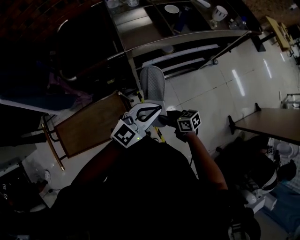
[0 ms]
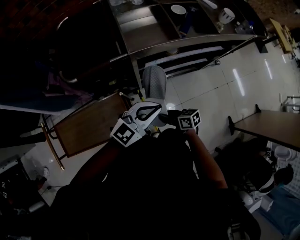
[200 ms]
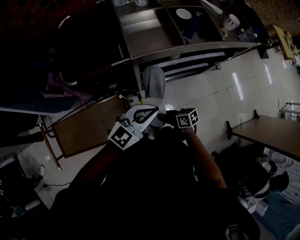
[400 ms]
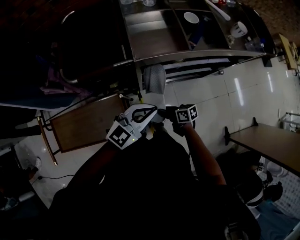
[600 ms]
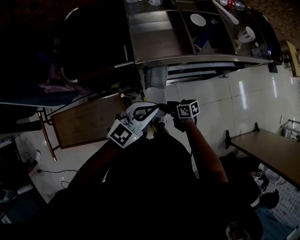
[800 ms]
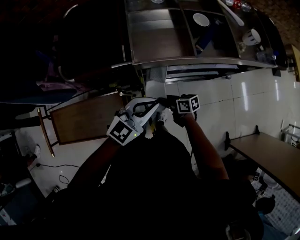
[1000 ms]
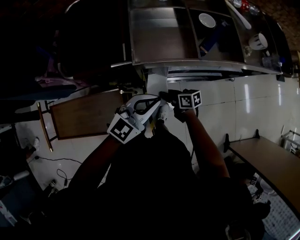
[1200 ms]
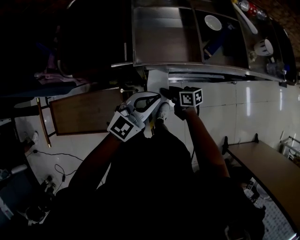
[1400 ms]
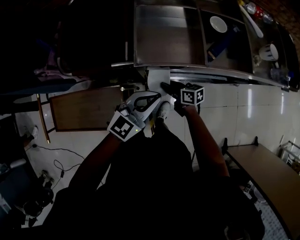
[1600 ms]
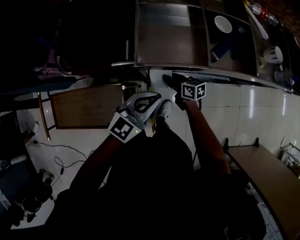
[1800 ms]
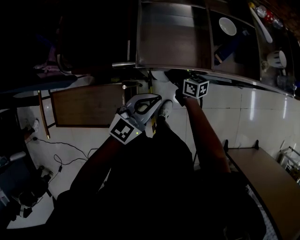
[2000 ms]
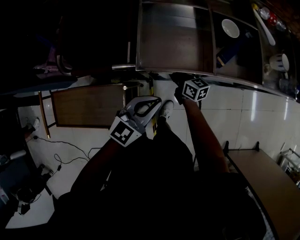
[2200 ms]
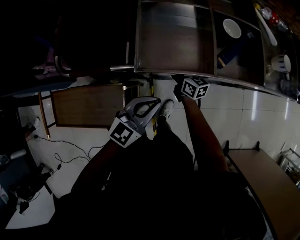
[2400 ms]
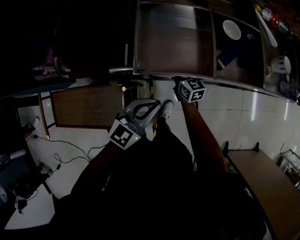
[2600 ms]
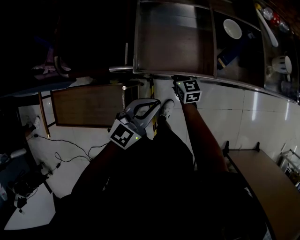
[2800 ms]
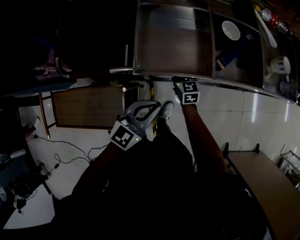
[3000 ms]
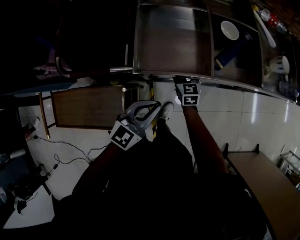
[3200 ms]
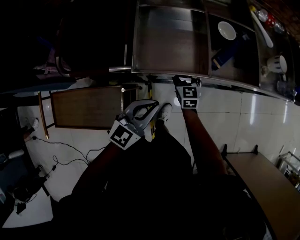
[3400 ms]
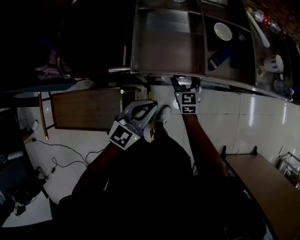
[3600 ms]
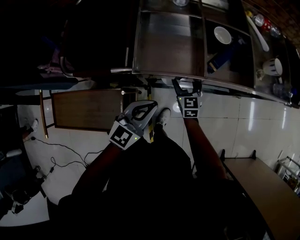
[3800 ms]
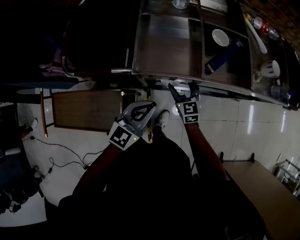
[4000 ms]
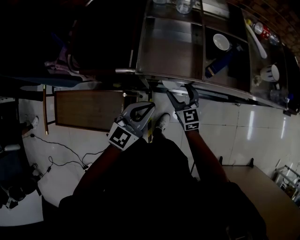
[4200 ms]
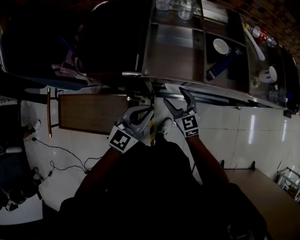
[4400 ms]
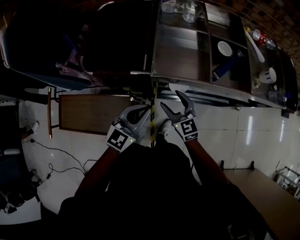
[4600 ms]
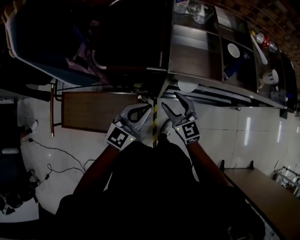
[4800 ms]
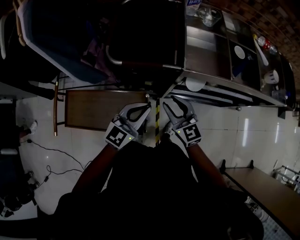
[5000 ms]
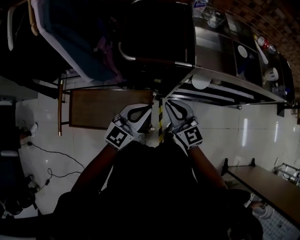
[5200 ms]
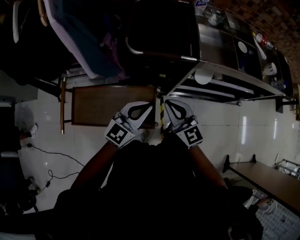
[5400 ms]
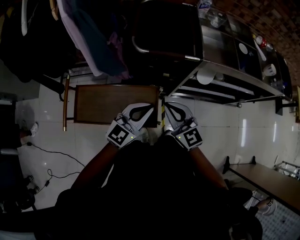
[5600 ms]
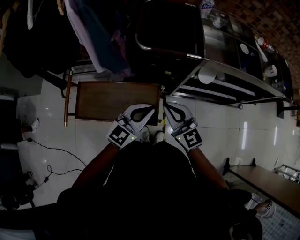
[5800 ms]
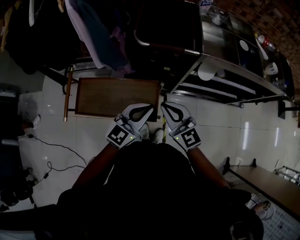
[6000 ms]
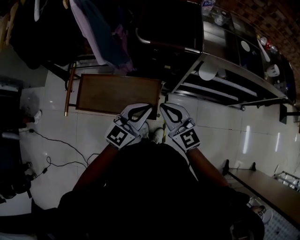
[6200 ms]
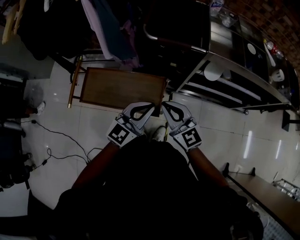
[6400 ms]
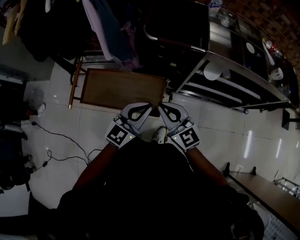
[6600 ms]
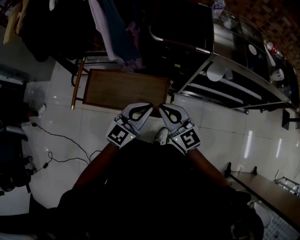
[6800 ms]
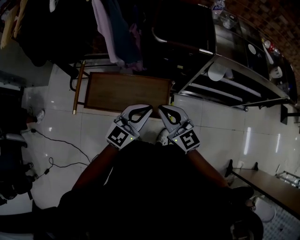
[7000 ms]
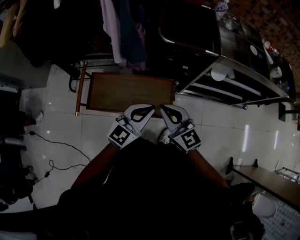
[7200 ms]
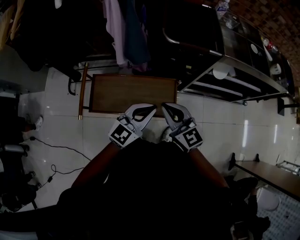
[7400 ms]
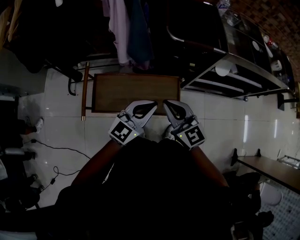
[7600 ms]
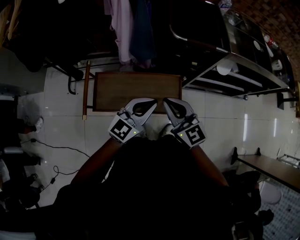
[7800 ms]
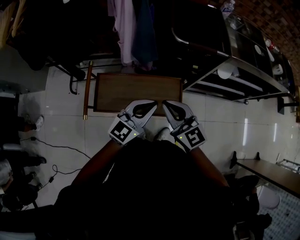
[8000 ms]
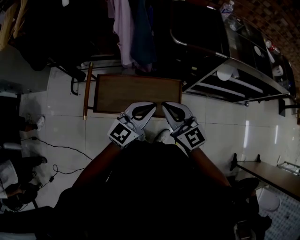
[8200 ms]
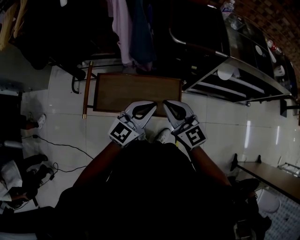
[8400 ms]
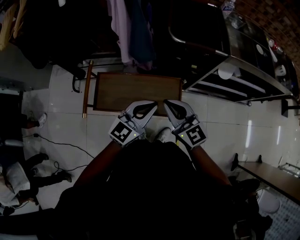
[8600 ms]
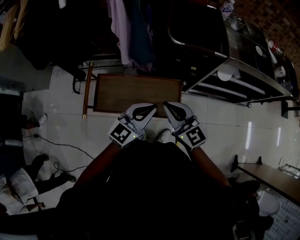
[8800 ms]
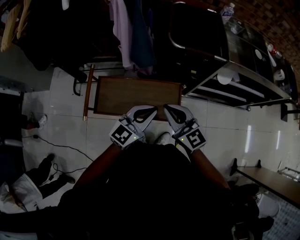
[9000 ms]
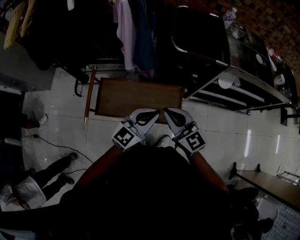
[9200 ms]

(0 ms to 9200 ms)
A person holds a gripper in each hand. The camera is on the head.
0 ms - 1600 ms: The left gripper moves roughly 15 cm, and swivels approximately 20 degrees. The right gripper ends up some 25 cm from where it was.
1600 ms - 3000 ms: The right gripper heads forward, covering roughly 10 cm, swivels some 40 degrees, and opens up.
3000 ms - 4600 ms: The left gripper is displaced to the left and upward by roughly 10 cm. Meanwhile the right gripper is displaced upward and backward by approximately 20 cm, and turns by some 20 degrees.
4600 ms - 6200 ms: The left gripper goes approximately 25 cm to the left and backward. The right gripper goes some 30 cm to the left, backward and upward, and closes up.
6200 ms - 7600 ms: Both grippers move to the left, approximately 15 cm.
7600 ms - 9200 ms: The grippers stay close to where they were, moving slightly.

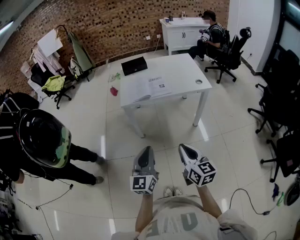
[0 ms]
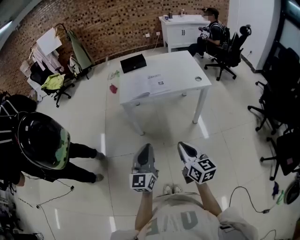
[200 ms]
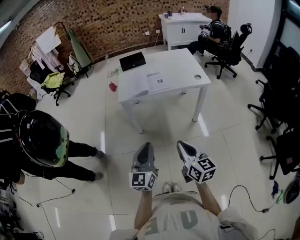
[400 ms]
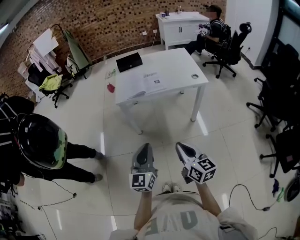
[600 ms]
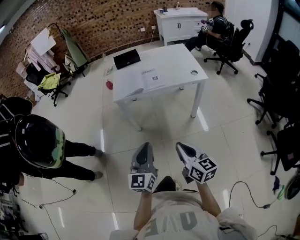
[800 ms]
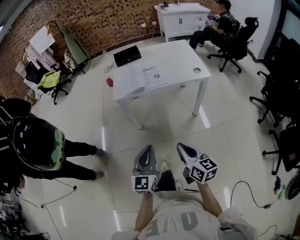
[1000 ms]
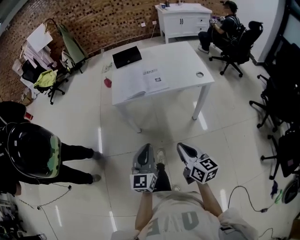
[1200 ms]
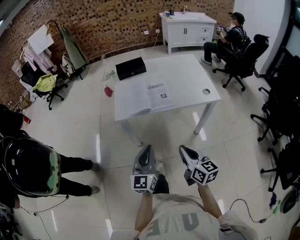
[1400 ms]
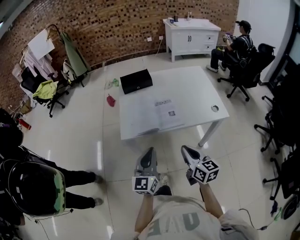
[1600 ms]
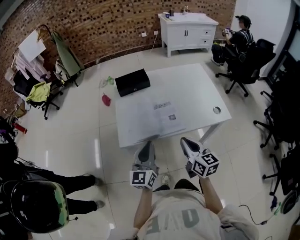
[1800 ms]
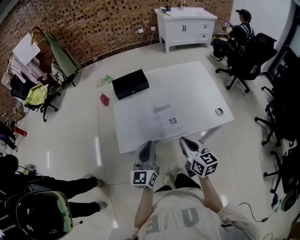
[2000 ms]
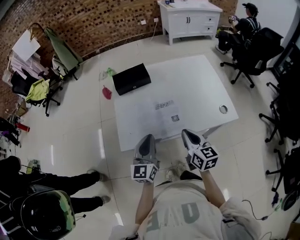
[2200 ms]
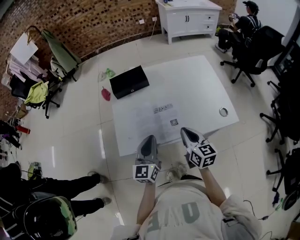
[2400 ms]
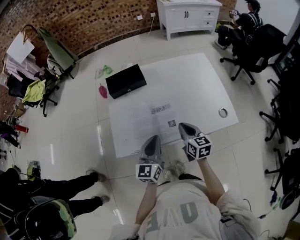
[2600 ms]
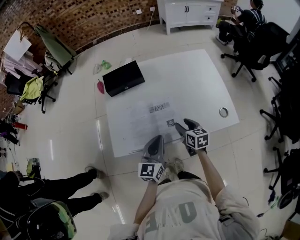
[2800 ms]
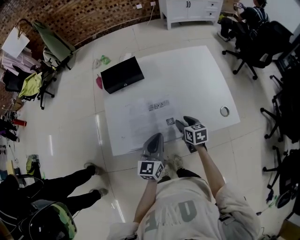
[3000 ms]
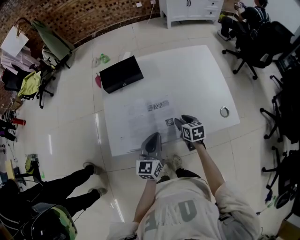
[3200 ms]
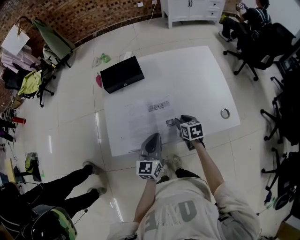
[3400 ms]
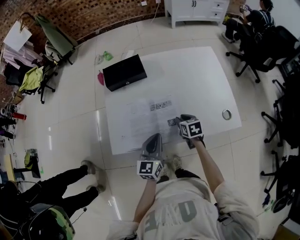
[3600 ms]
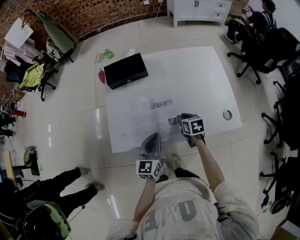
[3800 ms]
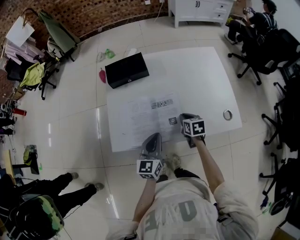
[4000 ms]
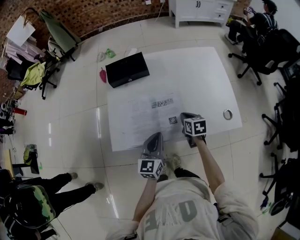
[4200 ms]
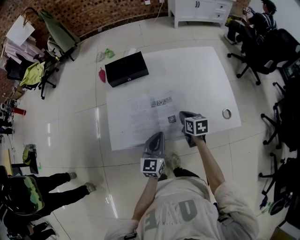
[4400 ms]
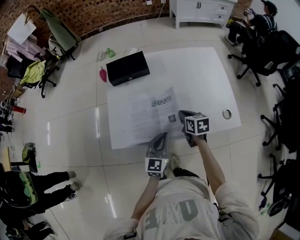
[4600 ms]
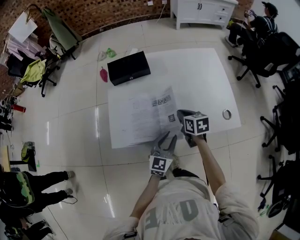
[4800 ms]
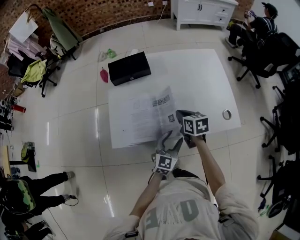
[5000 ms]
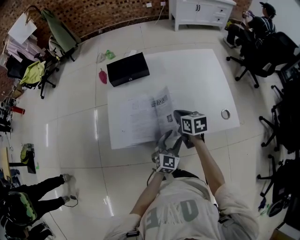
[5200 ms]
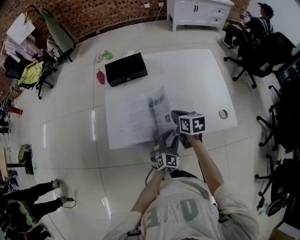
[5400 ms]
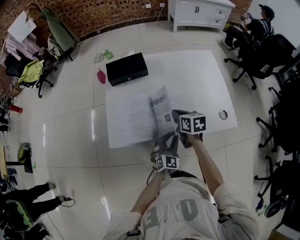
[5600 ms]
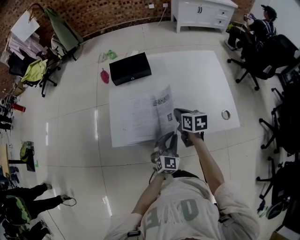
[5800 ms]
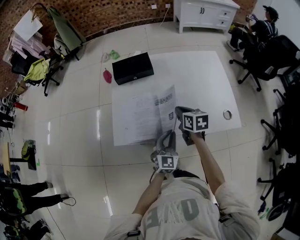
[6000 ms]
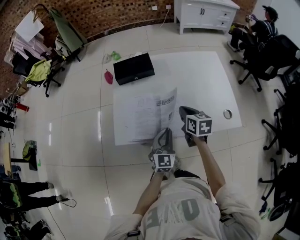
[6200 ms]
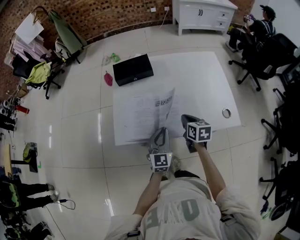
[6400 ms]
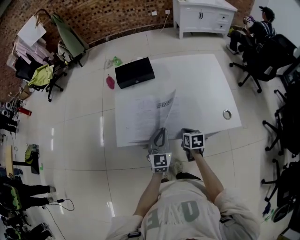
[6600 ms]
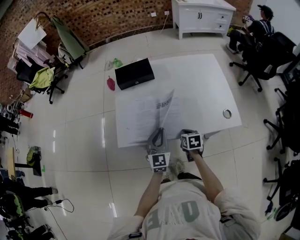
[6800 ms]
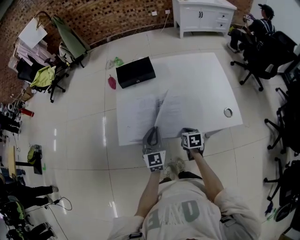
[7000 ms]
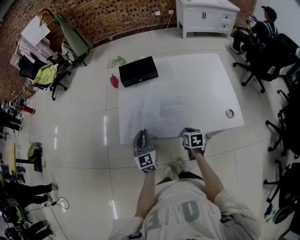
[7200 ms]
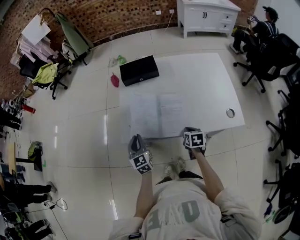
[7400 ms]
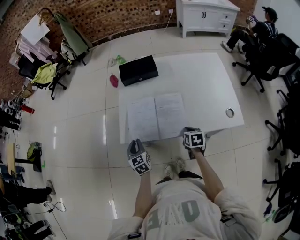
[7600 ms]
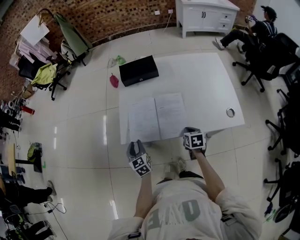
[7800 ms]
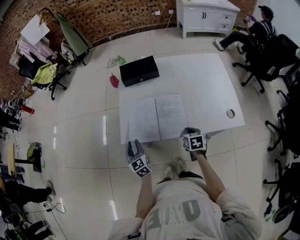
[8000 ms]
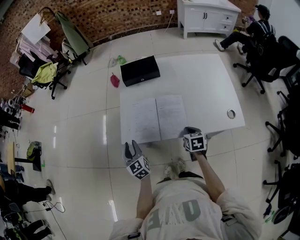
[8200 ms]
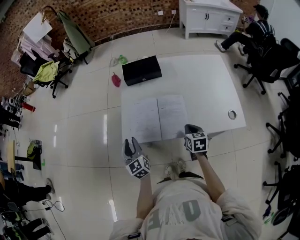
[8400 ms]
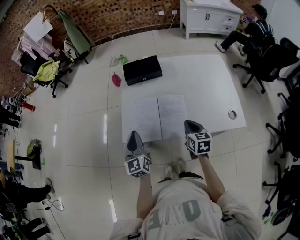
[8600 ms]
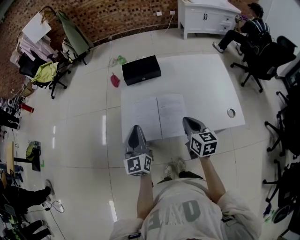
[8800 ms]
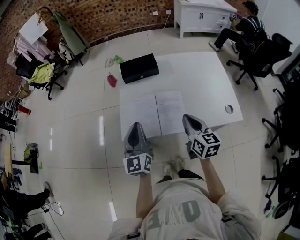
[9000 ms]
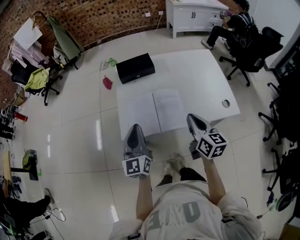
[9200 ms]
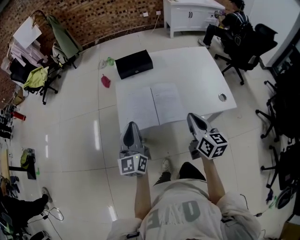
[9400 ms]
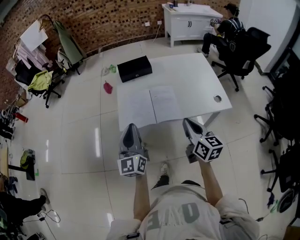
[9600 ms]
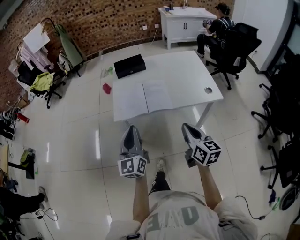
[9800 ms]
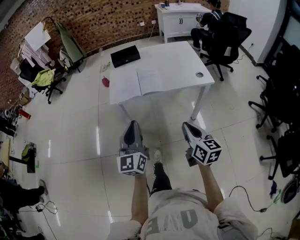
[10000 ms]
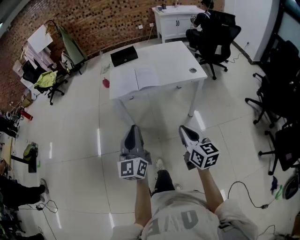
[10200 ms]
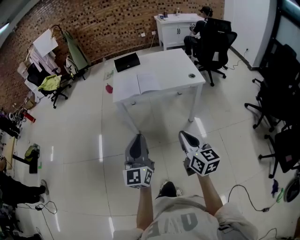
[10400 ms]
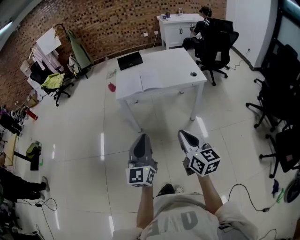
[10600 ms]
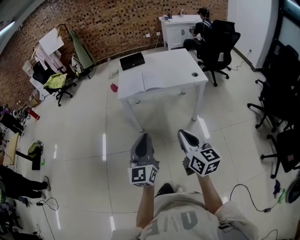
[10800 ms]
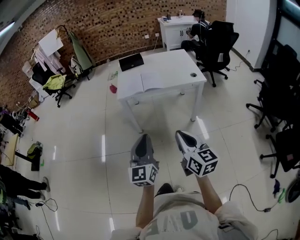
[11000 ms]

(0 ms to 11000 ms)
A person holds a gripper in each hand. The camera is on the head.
0 ms - 1600 ms: The grippers both shift forward by about 30 cm.
1600 ms - 3200 ms: The two grippers go about 30 cm forward and downward. The right gripper angles its fingers downward, by approximately 30 degrees, and opens its fingers.
3200 ms - 4800 ms: The right gripper is displaced upward by approximately 5 cm, and closes its fingers, while the left gripper shifts roughly 5 cm to the right, and opens.
4800 ms - 6200 ms: The right gripper goes roughly 5 cm upward; the left gripper closes its fingers.
6200 ms - 7800 ms: The right gripper goes some 15 cm downward and backward. The left gripper shifts approximately 20 cm to the left, swivels about 40 degrees, and opens.
7800 ms - 9400 ms: Both grippers travel together upward, about 25 cm. The left gripper tilts its fingers roughly 30 degrees upward, and closes. The right gripper tilts its fingers roughly 40 degrees upward.
9400 ms - 11000 ms: Both grippers are carried backward, about 50 cm.

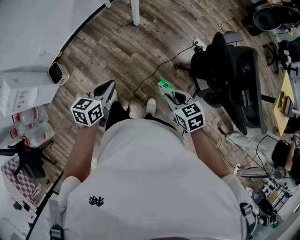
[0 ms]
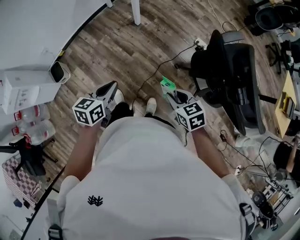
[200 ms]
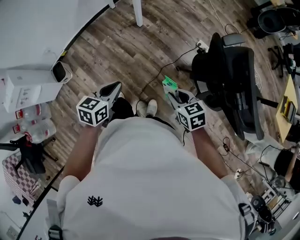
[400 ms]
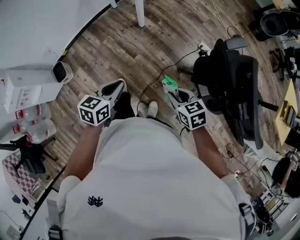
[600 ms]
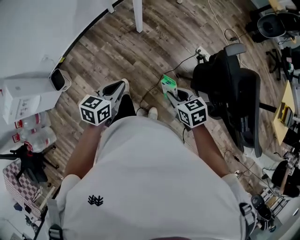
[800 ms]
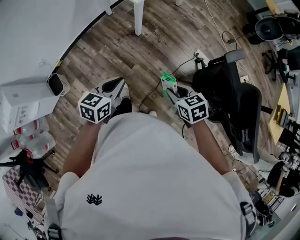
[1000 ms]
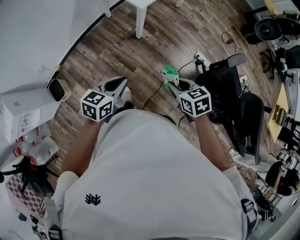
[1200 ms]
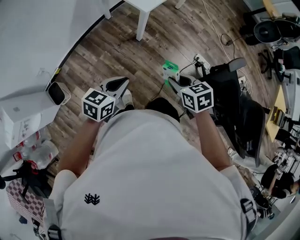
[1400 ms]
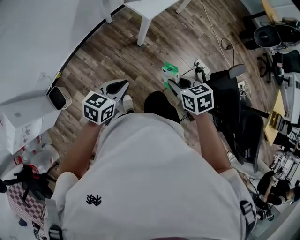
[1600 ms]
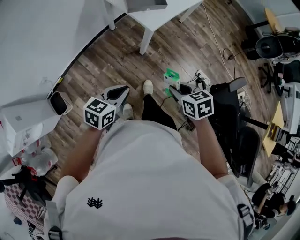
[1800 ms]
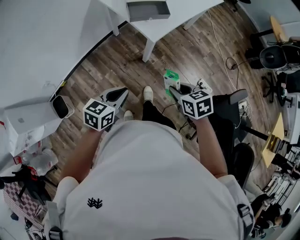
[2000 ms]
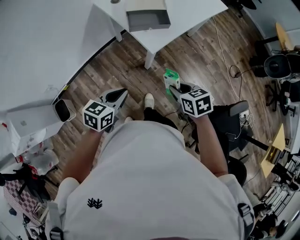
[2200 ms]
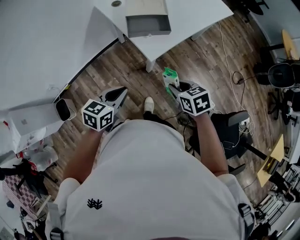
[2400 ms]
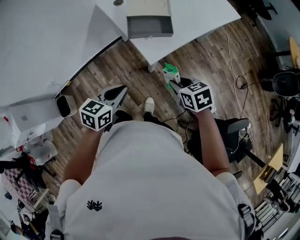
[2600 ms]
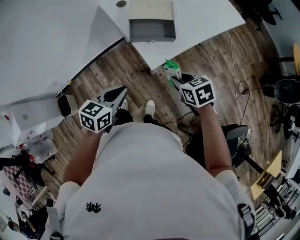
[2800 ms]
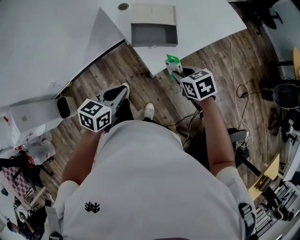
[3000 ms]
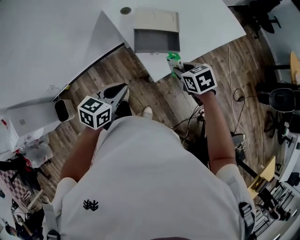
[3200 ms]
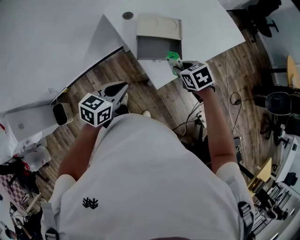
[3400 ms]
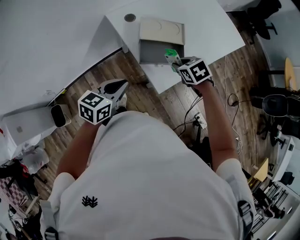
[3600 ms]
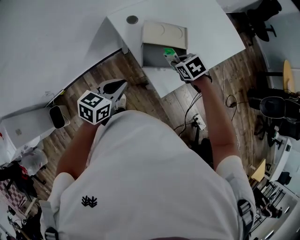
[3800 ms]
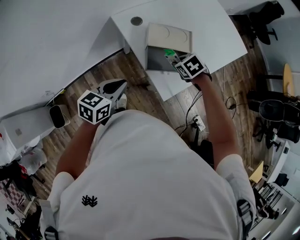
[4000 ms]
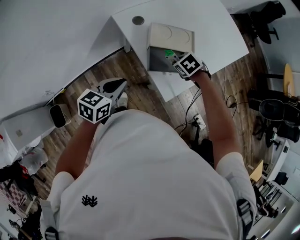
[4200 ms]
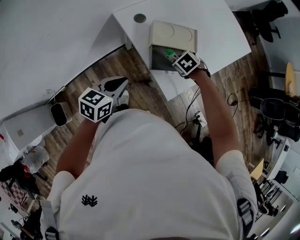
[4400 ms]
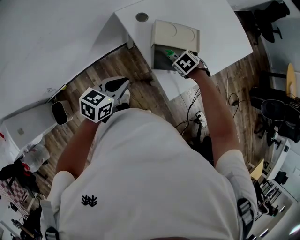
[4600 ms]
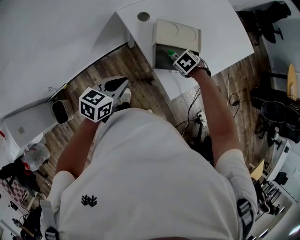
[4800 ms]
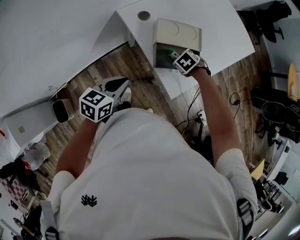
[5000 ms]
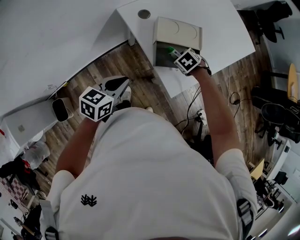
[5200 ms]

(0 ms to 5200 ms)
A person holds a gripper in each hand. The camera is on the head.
0 ms - 1800 ms: Both grippers travel together forward, about 30 cm.
1800 ms - 3400 ms: The grippers both shift forward by about 35 cm. The right gripper rotates approximately 30 degrees.
3400 ms - 5200 ms: The left gripper shifts by some 10 cm. Meanwhile the right gripper moves some 15 cm, and changes its angle by about 30 degrees.
